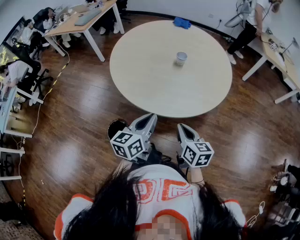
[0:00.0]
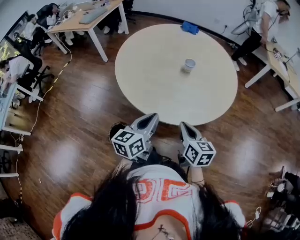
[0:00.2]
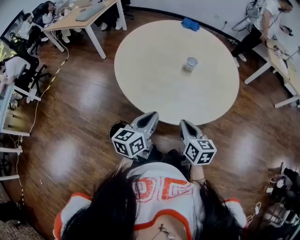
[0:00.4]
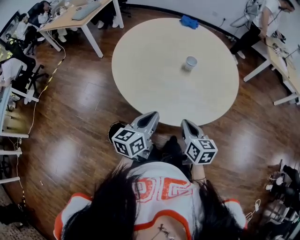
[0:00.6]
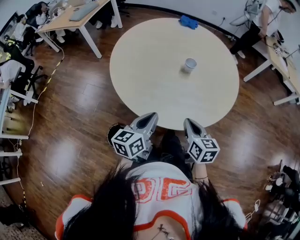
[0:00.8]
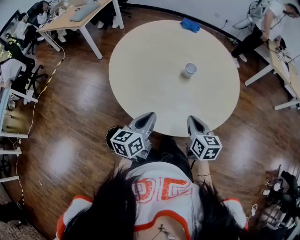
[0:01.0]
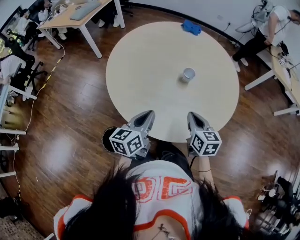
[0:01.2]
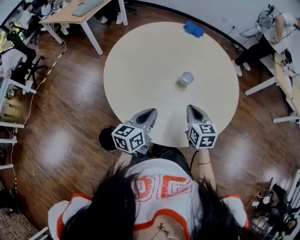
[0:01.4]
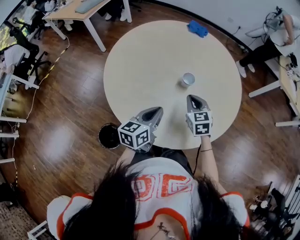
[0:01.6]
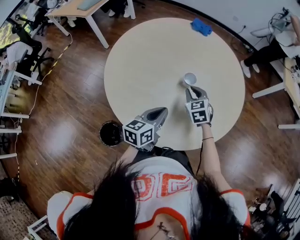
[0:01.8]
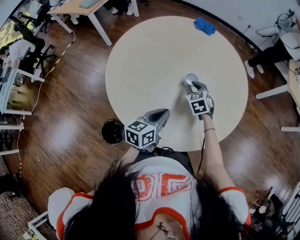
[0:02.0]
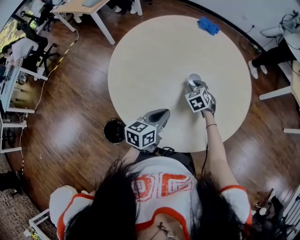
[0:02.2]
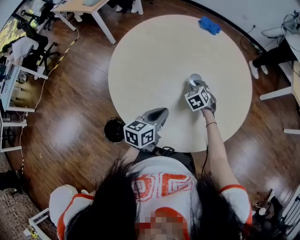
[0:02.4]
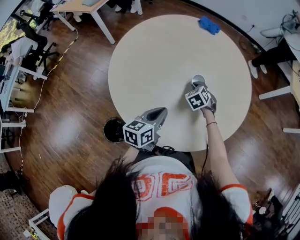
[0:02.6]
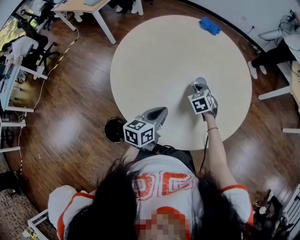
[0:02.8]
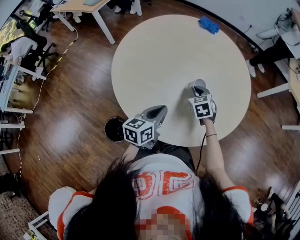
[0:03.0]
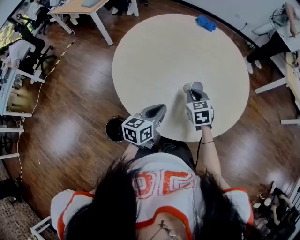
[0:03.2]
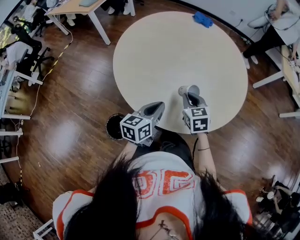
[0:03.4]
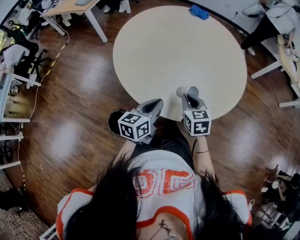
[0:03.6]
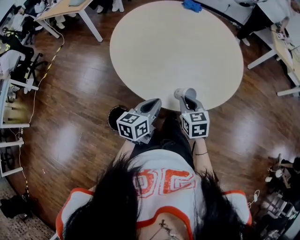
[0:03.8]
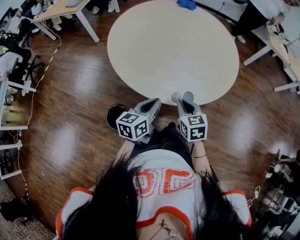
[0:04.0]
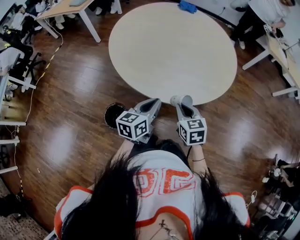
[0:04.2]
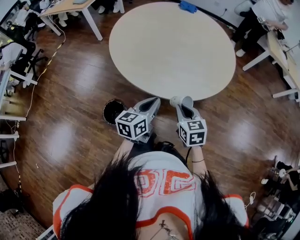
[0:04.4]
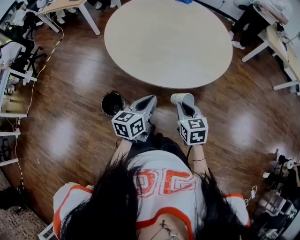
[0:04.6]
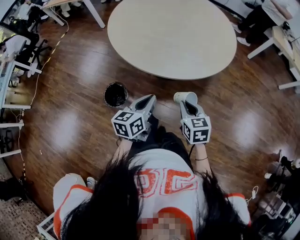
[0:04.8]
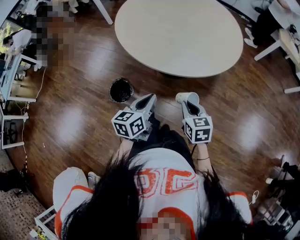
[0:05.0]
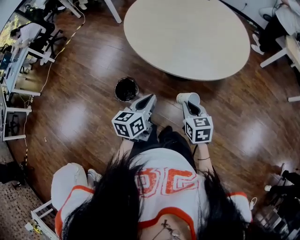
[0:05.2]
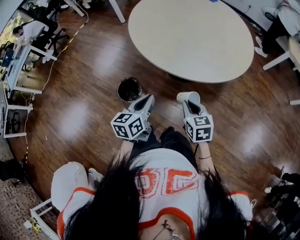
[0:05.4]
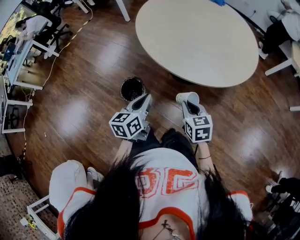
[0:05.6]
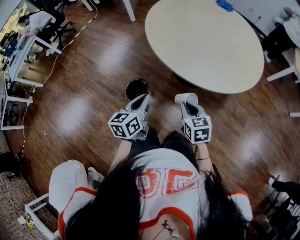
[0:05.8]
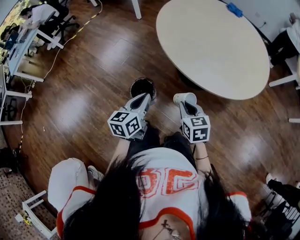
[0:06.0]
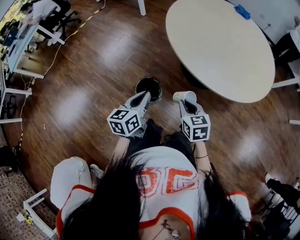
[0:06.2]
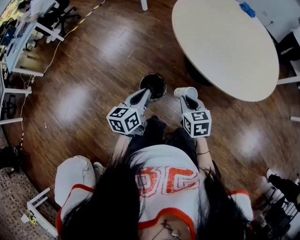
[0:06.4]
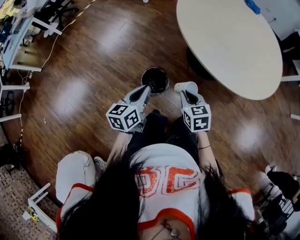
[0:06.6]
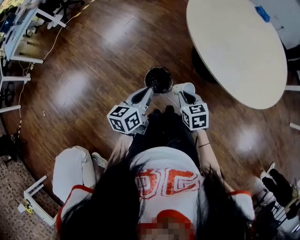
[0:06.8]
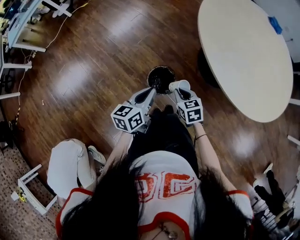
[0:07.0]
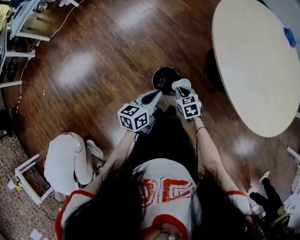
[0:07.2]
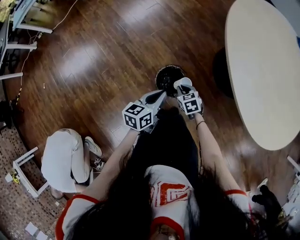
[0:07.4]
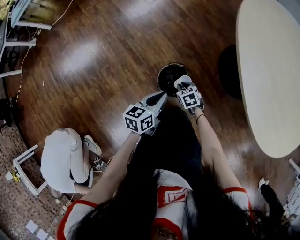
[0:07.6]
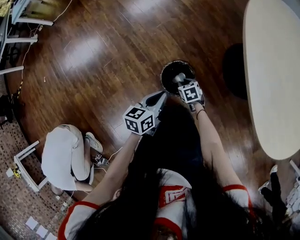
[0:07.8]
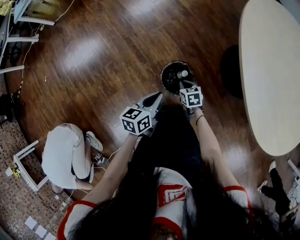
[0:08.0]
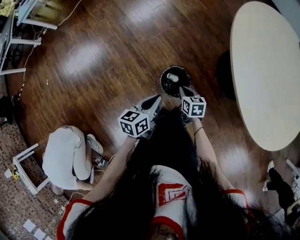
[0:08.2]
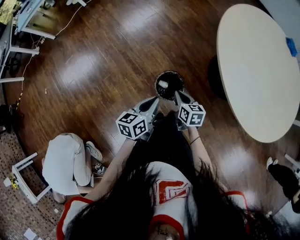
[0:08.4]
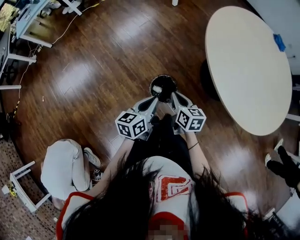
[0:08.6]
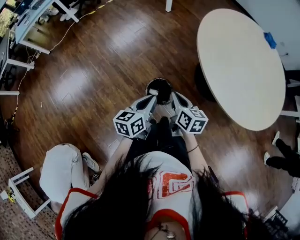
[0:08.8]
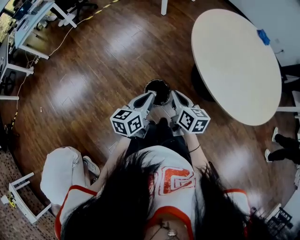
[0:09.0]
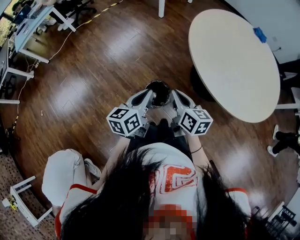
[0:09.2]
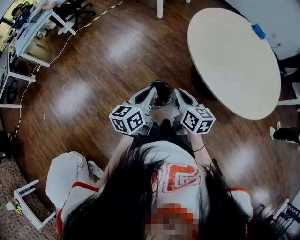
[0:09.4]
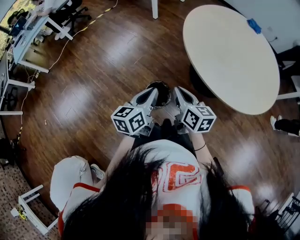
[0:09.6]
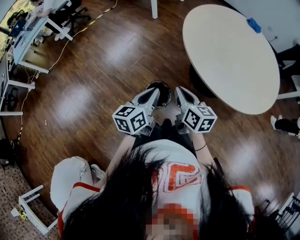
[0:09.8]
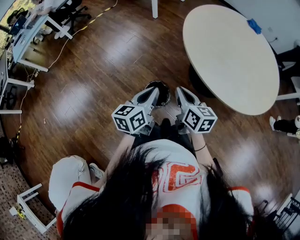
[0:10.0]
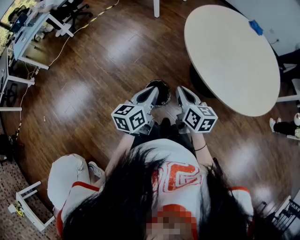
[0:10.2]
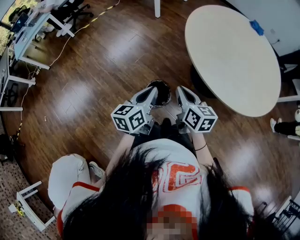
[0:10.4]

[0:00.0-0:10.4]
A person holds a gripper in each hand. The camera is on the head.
0:00.0 to 0:01.4: The two grippers go roughly 20 cm forward.
0:01.4 to 0:03.0: The right gripper goes about 10 cm forward and downward, and turns by approximately 30 degrees.
0:03.0 to 0:04.4: The right gripper shifts approximately 30 cm backward, and changes its angle by approximately 20 degrees; the left gripper moves backward, about 15 cm.
0:04.4 to 0:06.0: Both grippers travel together to the left, roughly 15 cm. The left gripper rotates approximately 20 degrees.
0:06.0 to 0:07.4: The right gripper is displaced downward, to the left and forward by approximately 35 cm, and rotates some 30 degrees. Meanwhile the left gripper goes roughly 20 cm downward and to the left.
0:07.4 to 0:09.0: The left gripper is displaced upward by some 15 cm, while the right gripper shifts roughly 30 cm upward, tilts its fingers approximately 30 degrees upward, and opens, then closes once more.
0:09.0 to 0:10.4: The right gripper shifts by about 5 cm.

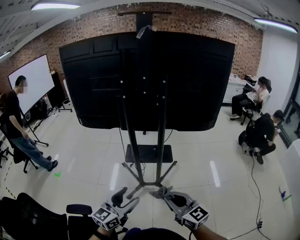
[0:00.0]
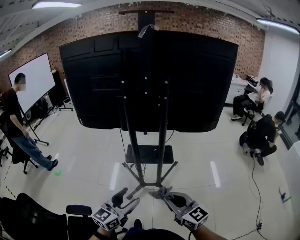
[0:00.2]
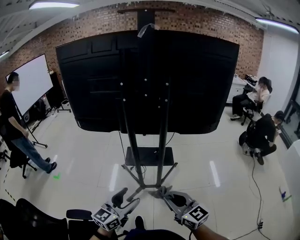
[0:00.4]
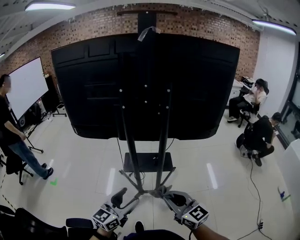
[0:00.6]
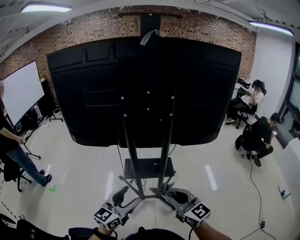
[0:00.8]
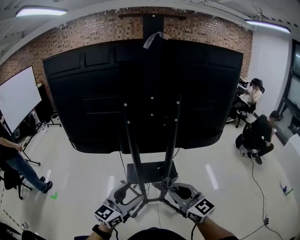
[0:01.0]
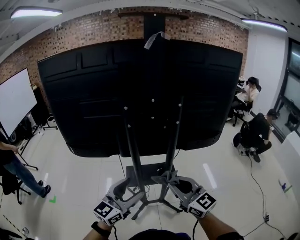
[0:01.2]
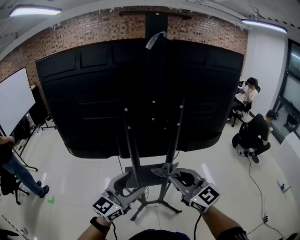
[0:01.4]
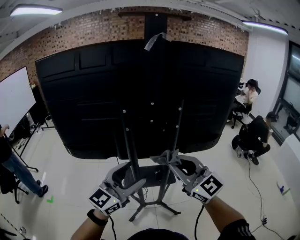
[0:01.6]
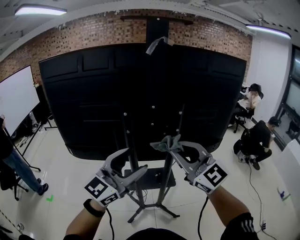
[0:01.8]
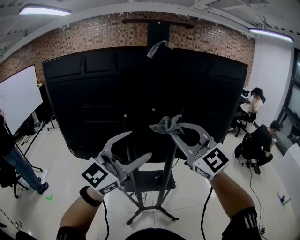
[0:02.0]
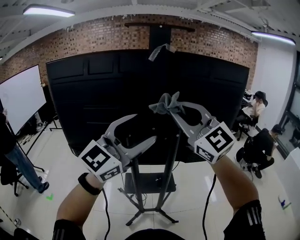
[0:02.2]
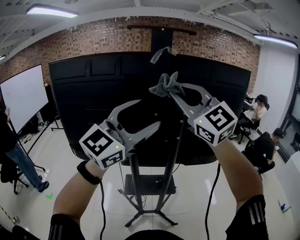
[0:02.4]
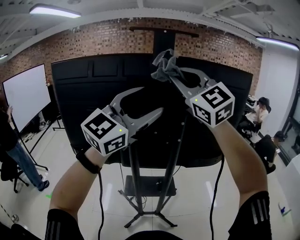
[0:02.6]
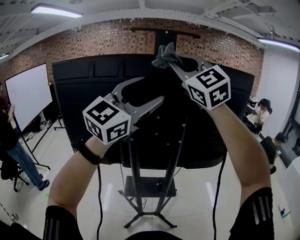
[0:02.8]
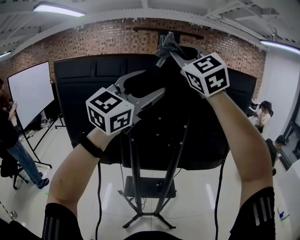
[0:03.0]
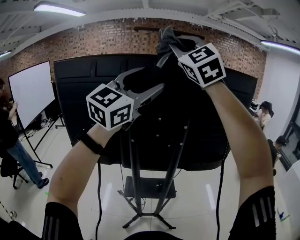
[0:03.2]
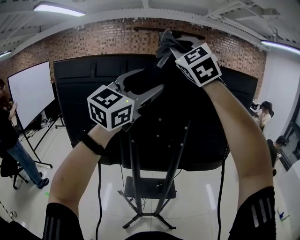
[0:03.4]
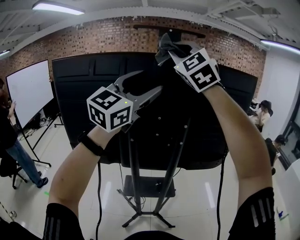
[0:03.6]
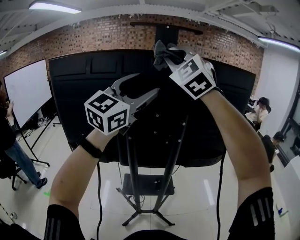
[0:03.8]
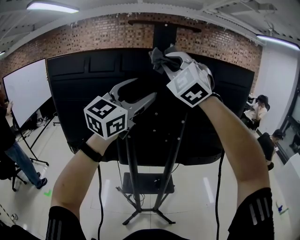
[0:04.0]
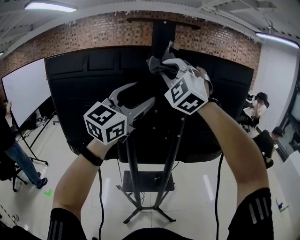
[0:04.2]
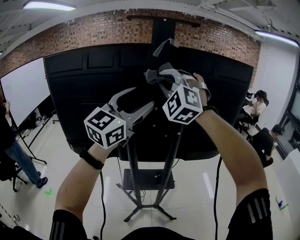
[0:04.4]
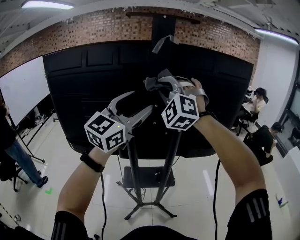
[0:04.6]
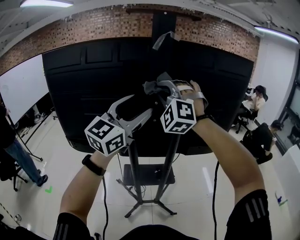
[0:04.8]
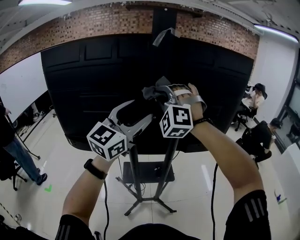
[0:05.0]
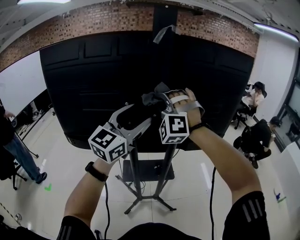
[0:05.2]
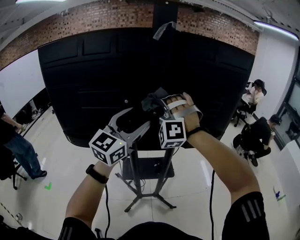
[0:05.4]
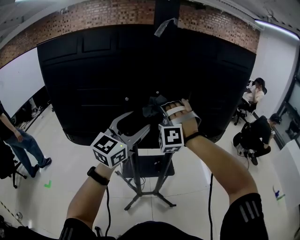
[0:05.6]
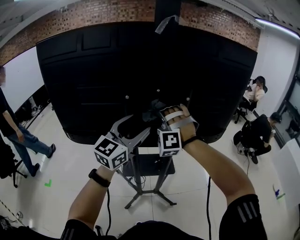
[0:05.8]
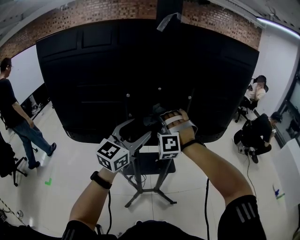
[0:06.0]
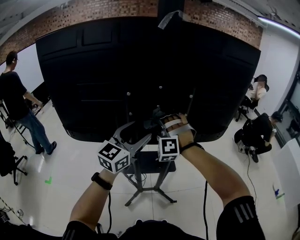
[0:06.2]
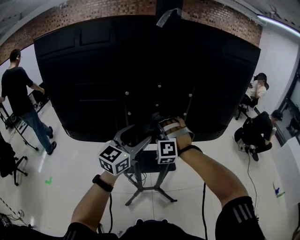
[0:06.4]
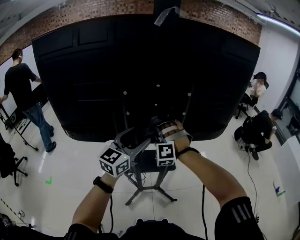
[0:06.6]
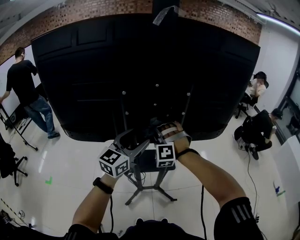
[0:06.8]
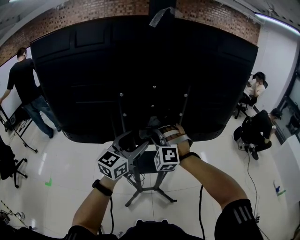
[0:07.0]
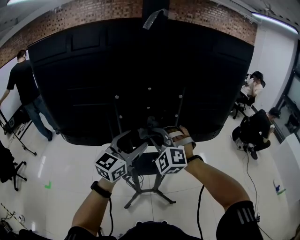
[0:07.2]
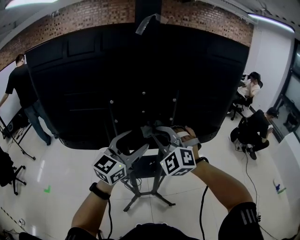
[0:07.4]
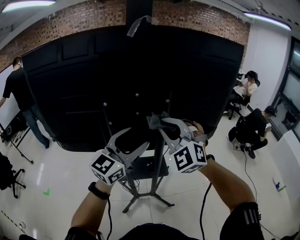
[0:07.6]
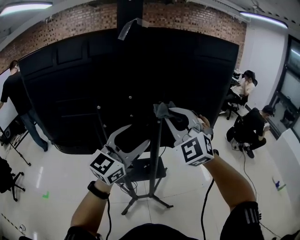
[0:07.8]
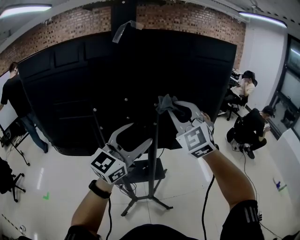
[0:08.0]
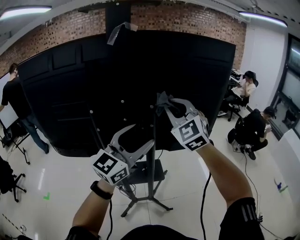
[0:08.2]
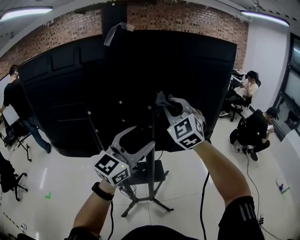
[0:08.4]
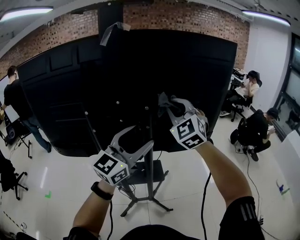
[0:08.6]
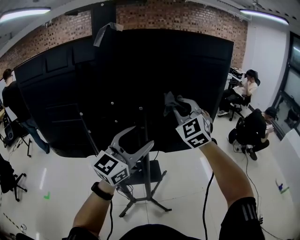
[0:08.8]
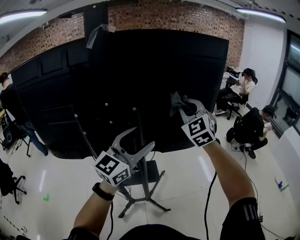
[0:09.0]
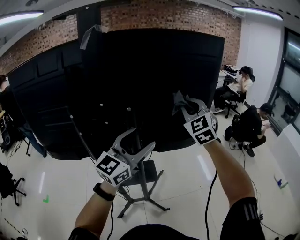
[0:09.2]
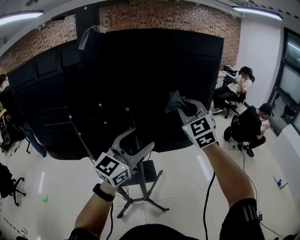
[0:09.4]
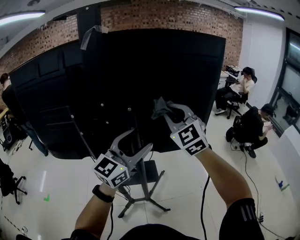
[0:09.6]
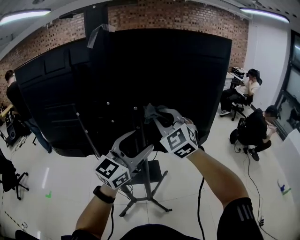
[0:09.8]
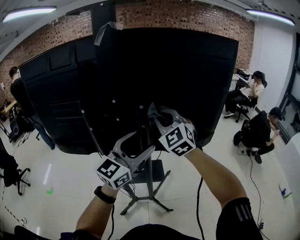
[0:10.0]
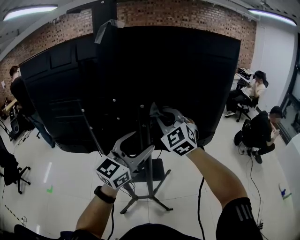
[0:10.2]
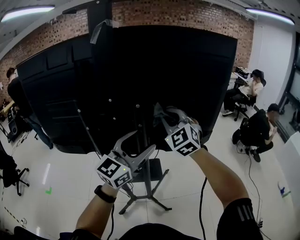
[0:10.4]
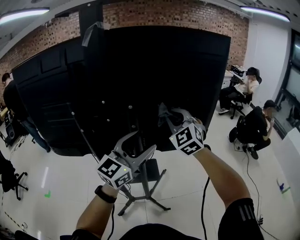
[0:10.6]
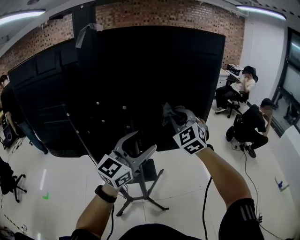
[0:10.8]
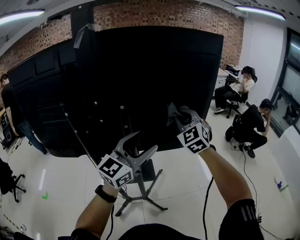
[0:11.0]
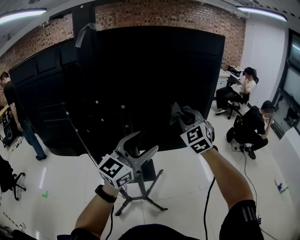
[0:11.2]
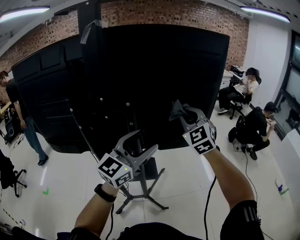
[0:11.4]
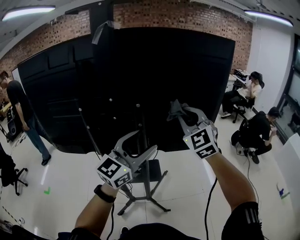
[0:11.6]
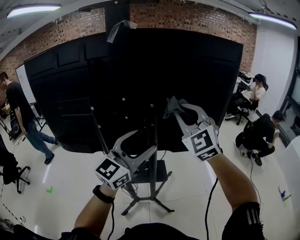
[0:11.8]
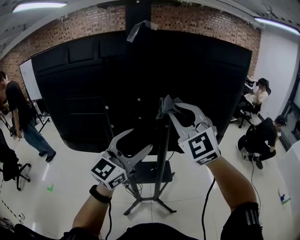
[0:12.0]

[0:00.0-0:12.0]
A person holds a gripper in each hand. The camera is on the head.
0:00.0 to 0:01.6: Both grippers move forward and upward, some 30 cm. The left gripper swivels roughly 20 degrees. Meanwhile the right gripper changes its angle by some 30 degrees.
0:01.6 to 0:03.0: The right gripper goes roughly 40 cm upward and forward, and rotates approximately 40 degrees. The left gripper travels upward by some 30 cm, and swivels roughly 30 degrees.
0:03.0 to 0:04.4: The left gripper travels downward by approximately 10 cm. Meanwhile the right gripper goes roughly 15 cm downward, and rotates roughly 30 degrees.
0:04.4 to 0:06.0: The grippers both shift downward by roughly 25 cm. The right gripper turns by some 30 degrees.
0:06.0 to 0:07.6: The left gripper moves to the right, about 5 cm, and reaches roughly 5 cm downward, then returns. Meanwhile the right gripper goes about 15 cm to the right, upward and backward, and changes its angle by roughly 40 degrees.
0:07.6 to 0:09.0: The left gripper travels to the right by about 10 cm, while the right gripper travels to the right and forward by roughly 25 cm, and swivels some 20 degrees.
0:09.0 to 0:10.4: The right gripper travels to the left and downward by some 10 cm.
0:10.4 to 0:12.0: The right gripper is displaced backward and upward by approximately 15 cm, and goes to the right and returns, roughly 10 cm each way. Meanwhile the left gripper moves to the left and backward, some 10 cm.

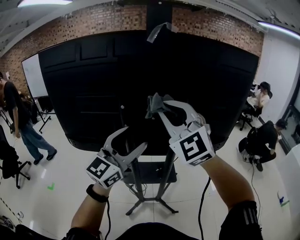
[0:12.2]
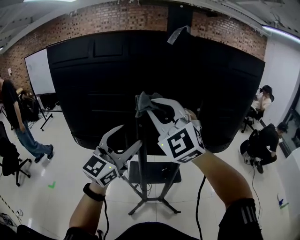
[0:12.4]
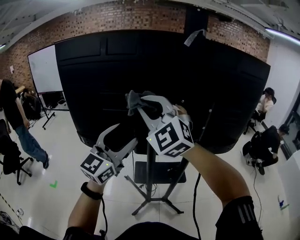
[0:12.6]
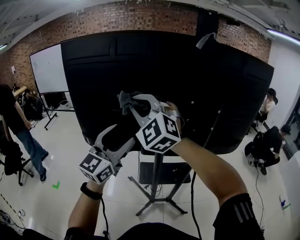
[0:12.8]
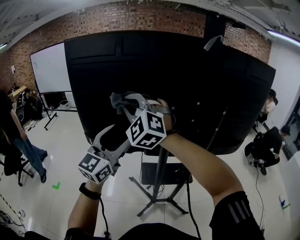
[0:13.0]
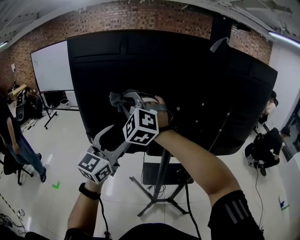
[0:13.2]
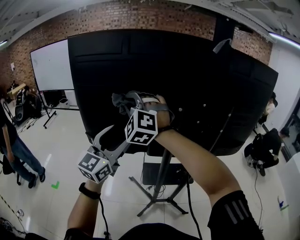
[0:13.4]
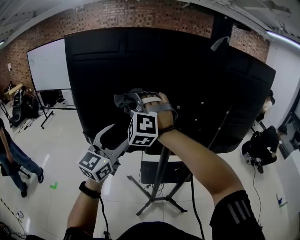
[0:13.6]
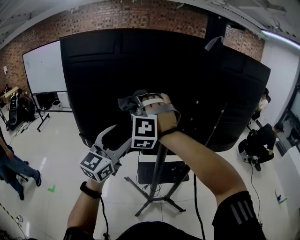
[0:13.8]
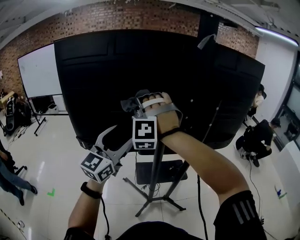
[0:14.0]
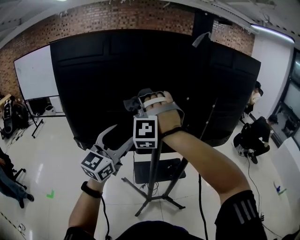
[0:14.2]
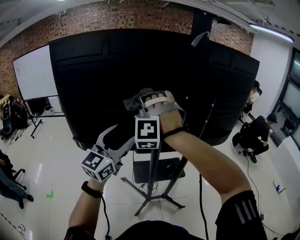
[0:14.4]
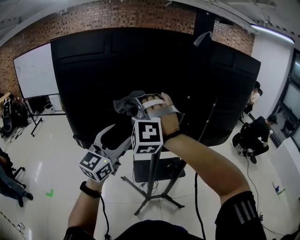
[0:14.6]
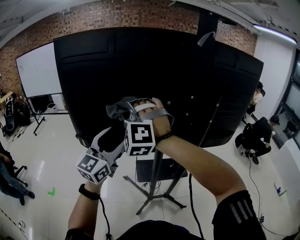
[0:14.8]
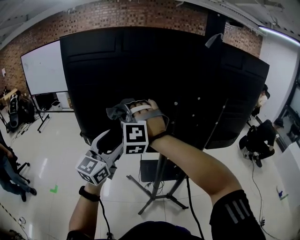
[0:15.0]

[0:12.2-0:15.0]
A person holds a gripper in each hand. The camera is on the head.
0:12.2 to 0:13.6: The two grippers go approximately 30 cm to the left. The right gripper swivels roughly 40 degrees.
0:13.6 to 0:15.0: The right gripper reaches approximately 10 cm to the right, then returns.
